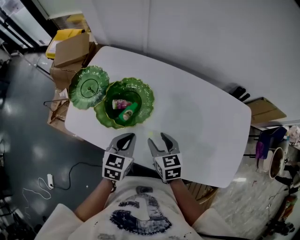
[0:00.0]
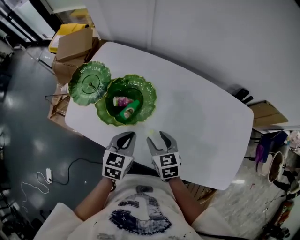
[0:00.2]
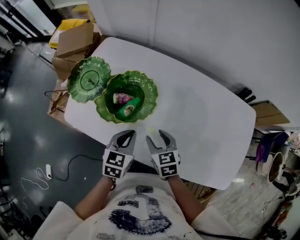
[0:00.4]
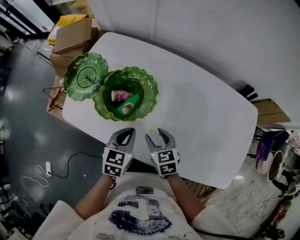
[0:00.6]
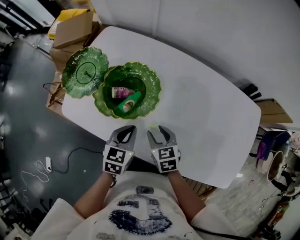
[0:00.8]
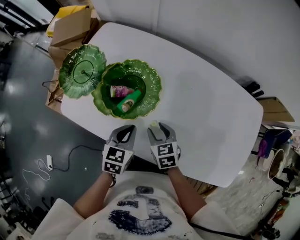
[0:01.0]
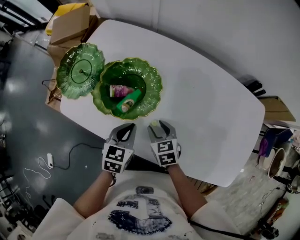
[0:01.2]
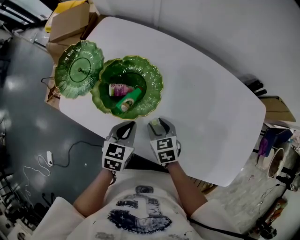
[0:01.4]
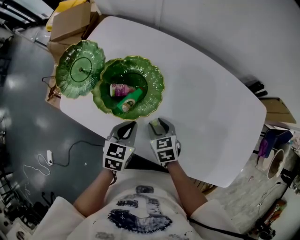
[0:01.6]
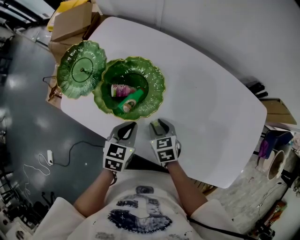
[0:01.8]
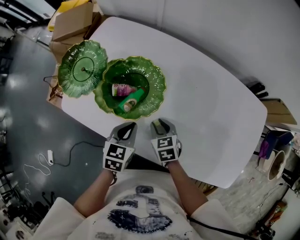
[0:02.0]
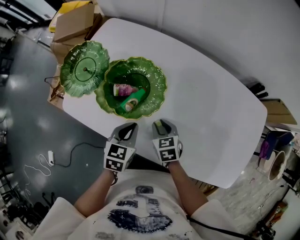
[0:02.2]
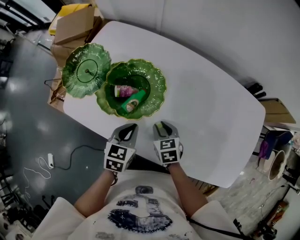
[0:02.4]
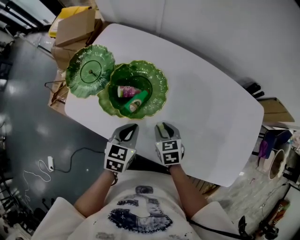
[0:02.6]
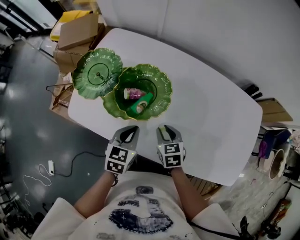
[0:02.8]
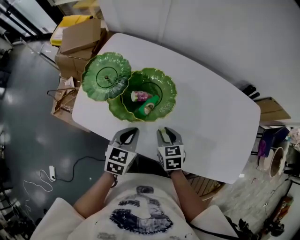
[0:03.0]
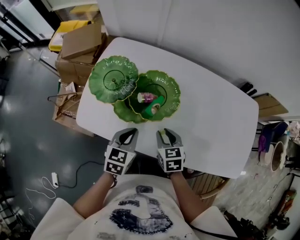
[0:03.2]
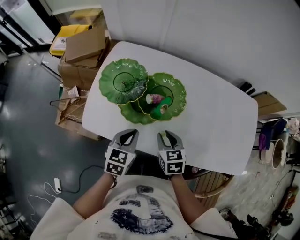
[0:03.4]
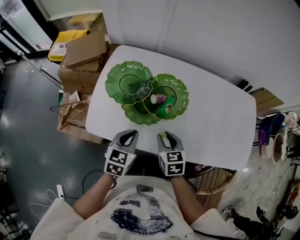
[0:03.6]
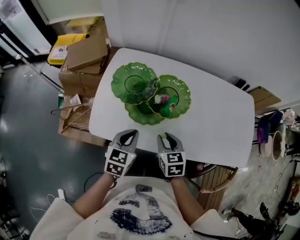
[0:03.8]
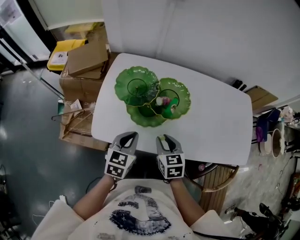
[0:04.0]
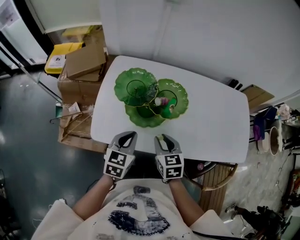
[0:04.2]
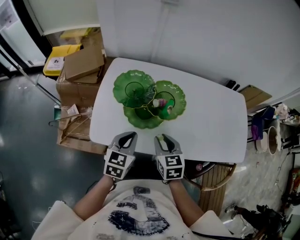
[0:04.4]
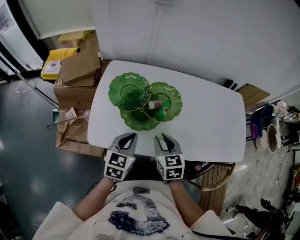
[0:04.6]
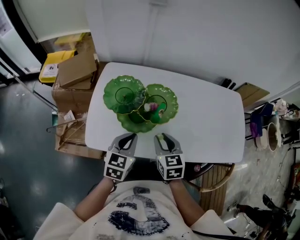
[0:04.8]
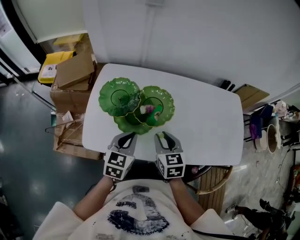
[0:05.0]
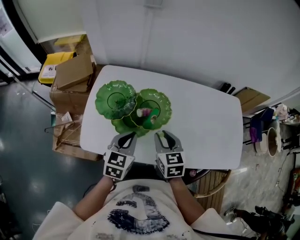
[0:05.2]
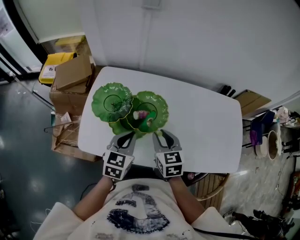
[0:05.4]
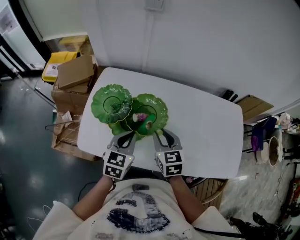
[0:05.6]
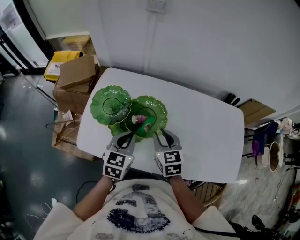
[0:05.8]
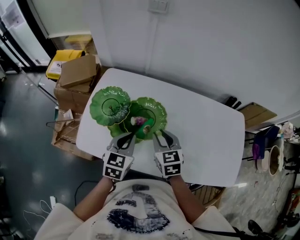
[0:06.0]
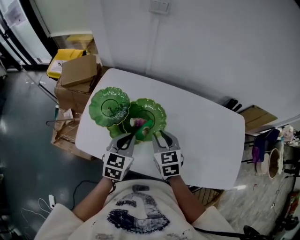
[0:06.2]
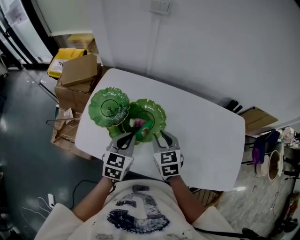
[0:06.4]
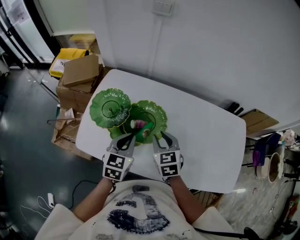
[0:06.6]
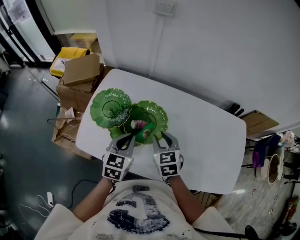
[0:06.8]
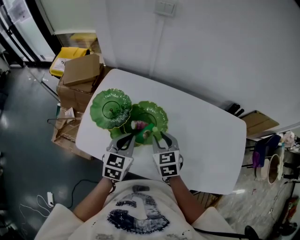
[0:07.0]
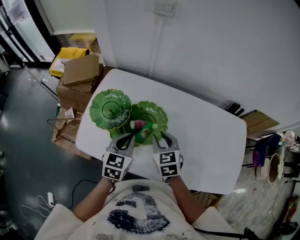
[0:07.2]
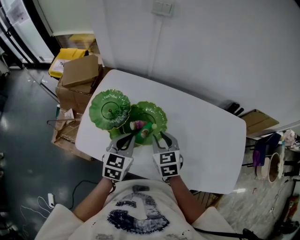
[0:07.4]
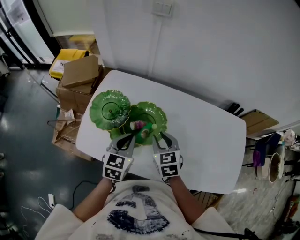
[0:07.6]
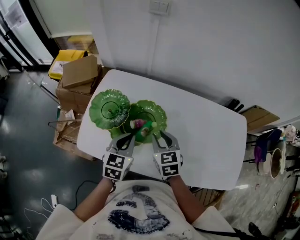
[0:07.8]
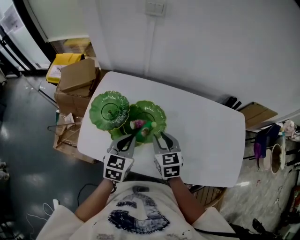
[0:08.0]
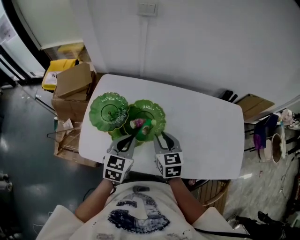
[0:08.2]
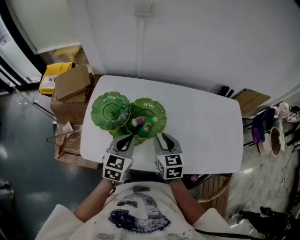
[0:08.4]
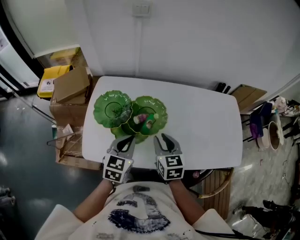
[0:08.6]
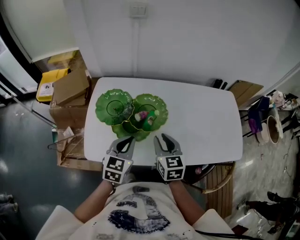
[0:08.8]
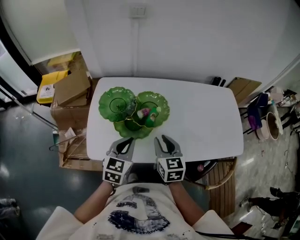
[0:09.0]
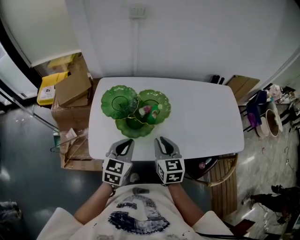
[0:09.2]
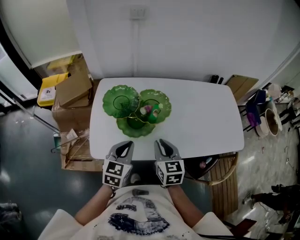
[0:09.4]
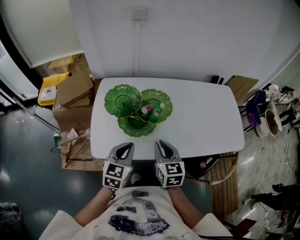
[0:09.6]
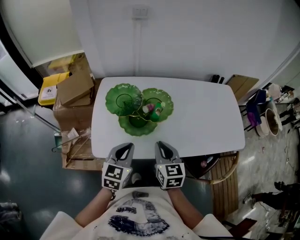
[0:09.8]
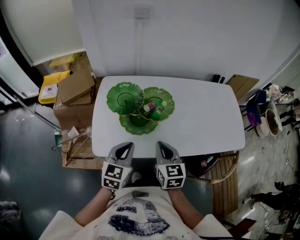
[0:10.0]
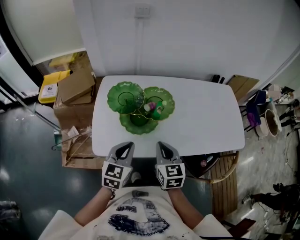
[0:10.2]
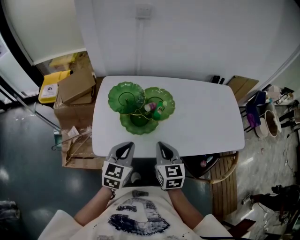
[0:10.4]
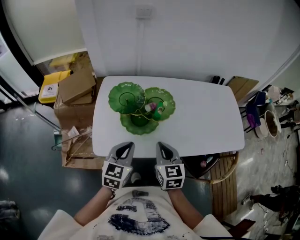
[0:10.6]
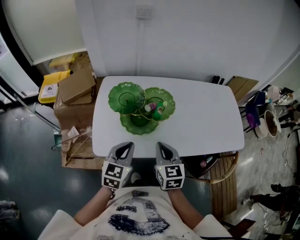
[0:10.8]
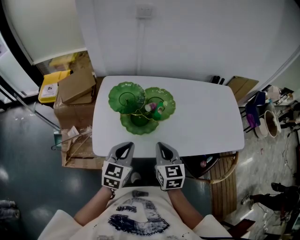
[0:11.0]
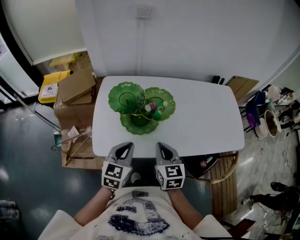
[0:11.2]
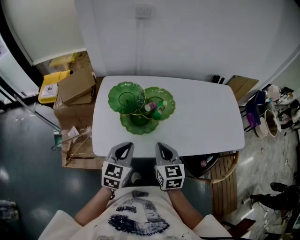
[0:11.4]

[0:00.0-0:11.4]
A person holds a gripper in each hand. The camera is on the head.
0:00.0 to 0:01.4: Both grippers travel together downward, roughly 10 cm.
0:01.4 to 0:02.8: The grippers make only small movements.
0:02.8 to 0:04.2: The left gripper travels to the left and upward by some 20 cm. The right gripper goes approximately 20 cm to the left, upward and backward, and rotates some 20 degrees.
0:04.2 to 0:05.6: The right gripper goes about 15 cm forward and to the right; the left gripper moves to the right and forward, about 10 cm.
0:05.6 to 0:07.2: The grippers move only a little.
0:07.2 to 0:08.6: The right gripper travels backward by roughly 5 cm, and turns by approximately 20 degrees; the left gripper changes place by about 5 cm.
0:08.6 to 0:10.0: The left gripper goes approximately 10 cm backward and to the left, while the right gripper heads backward, covering approximately 10 cm, and closes.
0:10.0 to 0:11.4: Both grippers stay put.

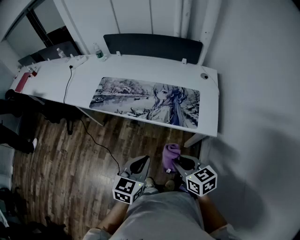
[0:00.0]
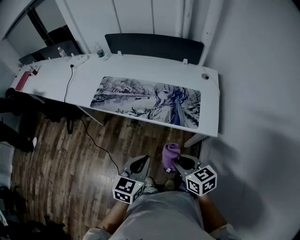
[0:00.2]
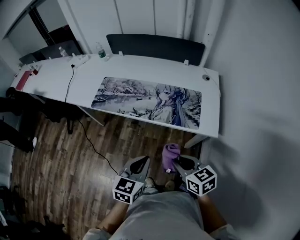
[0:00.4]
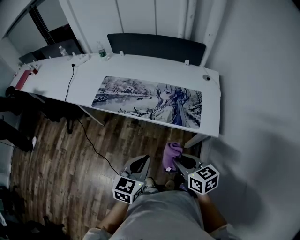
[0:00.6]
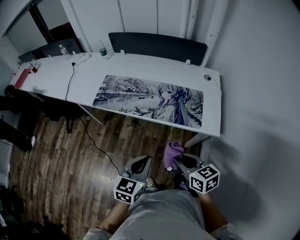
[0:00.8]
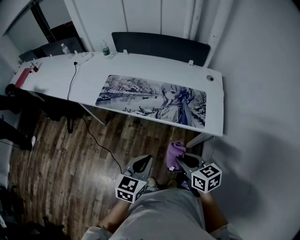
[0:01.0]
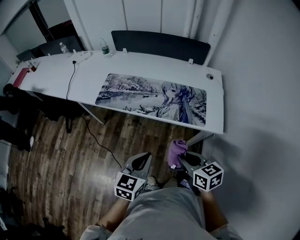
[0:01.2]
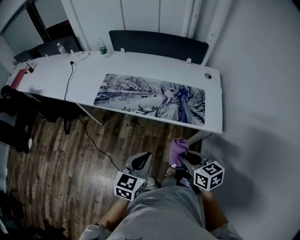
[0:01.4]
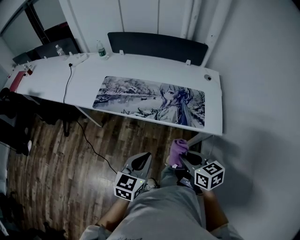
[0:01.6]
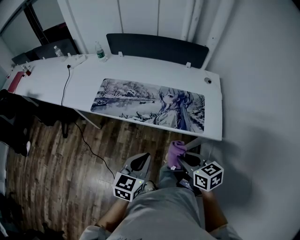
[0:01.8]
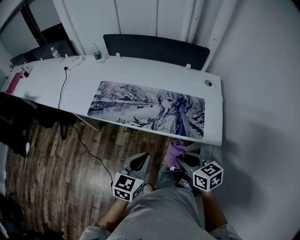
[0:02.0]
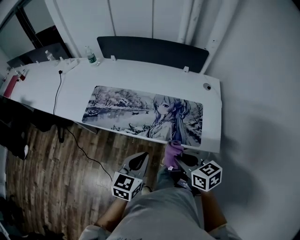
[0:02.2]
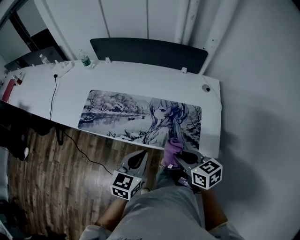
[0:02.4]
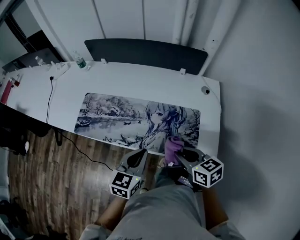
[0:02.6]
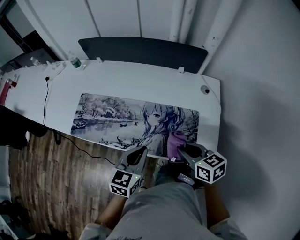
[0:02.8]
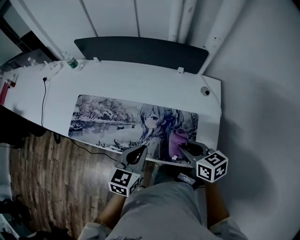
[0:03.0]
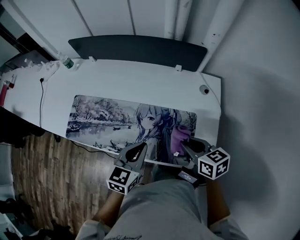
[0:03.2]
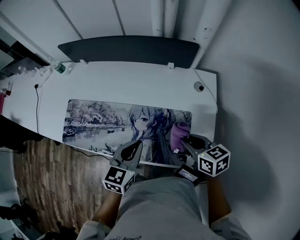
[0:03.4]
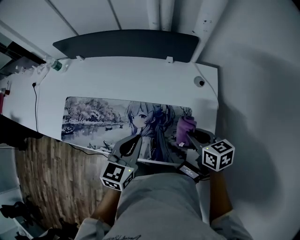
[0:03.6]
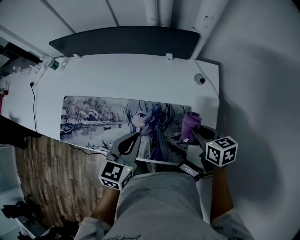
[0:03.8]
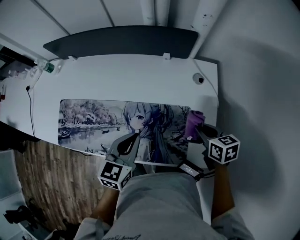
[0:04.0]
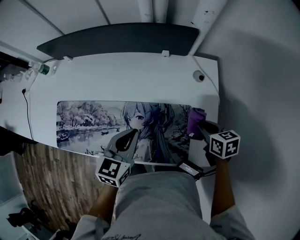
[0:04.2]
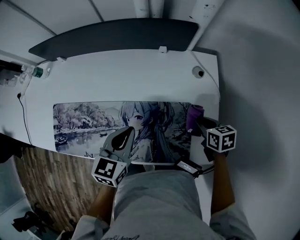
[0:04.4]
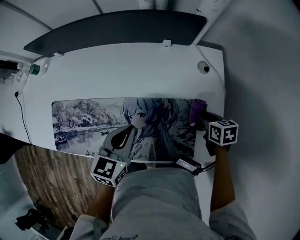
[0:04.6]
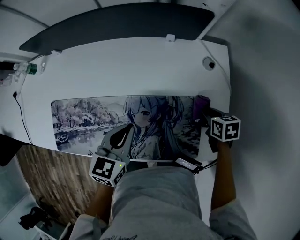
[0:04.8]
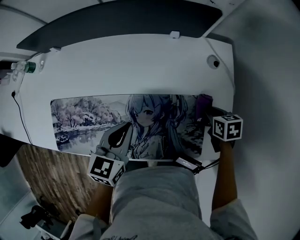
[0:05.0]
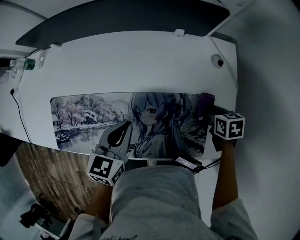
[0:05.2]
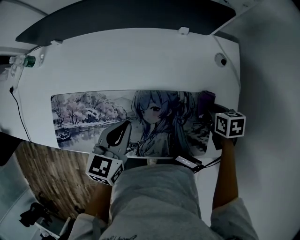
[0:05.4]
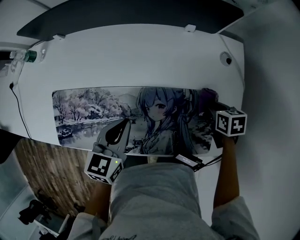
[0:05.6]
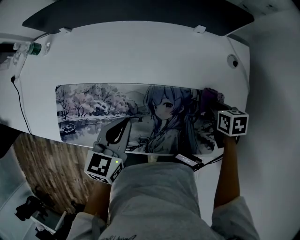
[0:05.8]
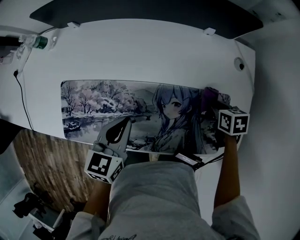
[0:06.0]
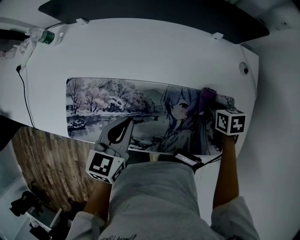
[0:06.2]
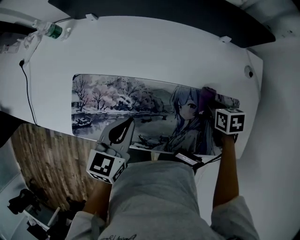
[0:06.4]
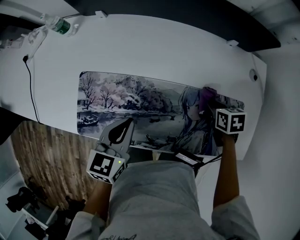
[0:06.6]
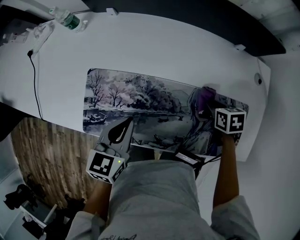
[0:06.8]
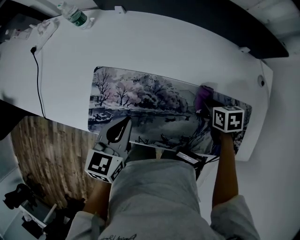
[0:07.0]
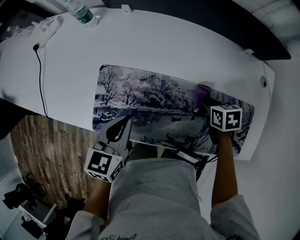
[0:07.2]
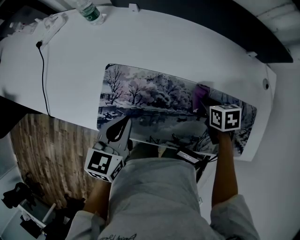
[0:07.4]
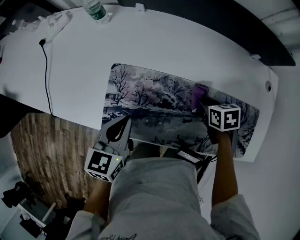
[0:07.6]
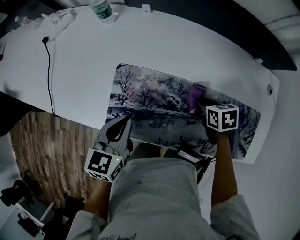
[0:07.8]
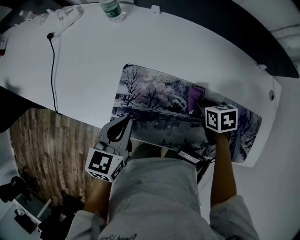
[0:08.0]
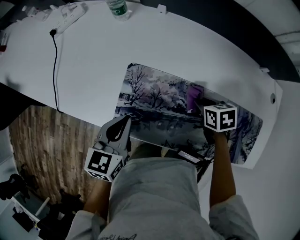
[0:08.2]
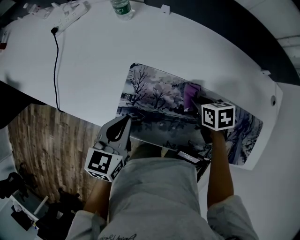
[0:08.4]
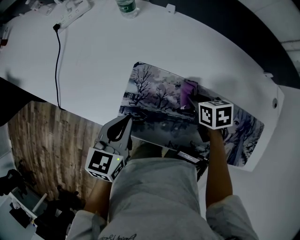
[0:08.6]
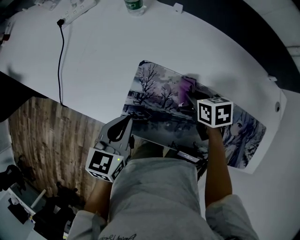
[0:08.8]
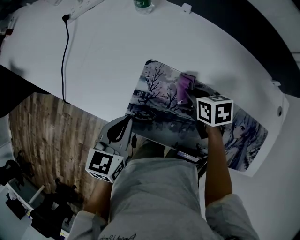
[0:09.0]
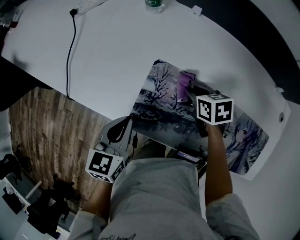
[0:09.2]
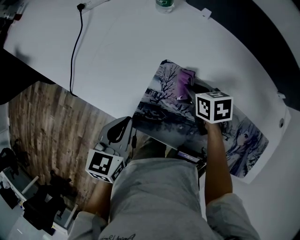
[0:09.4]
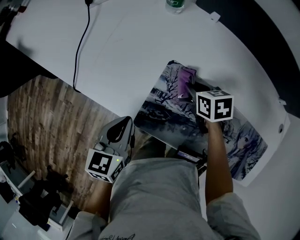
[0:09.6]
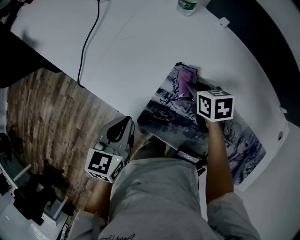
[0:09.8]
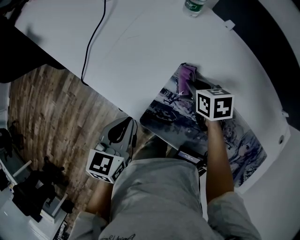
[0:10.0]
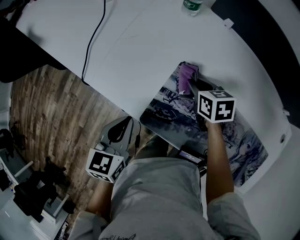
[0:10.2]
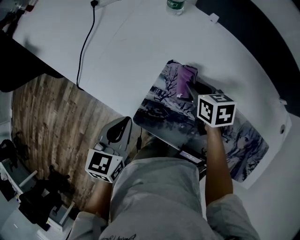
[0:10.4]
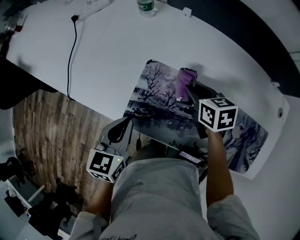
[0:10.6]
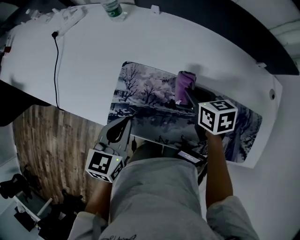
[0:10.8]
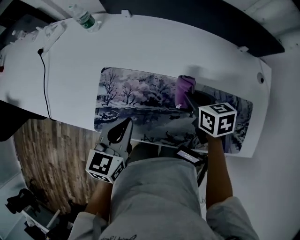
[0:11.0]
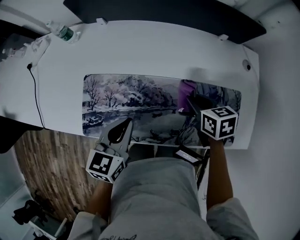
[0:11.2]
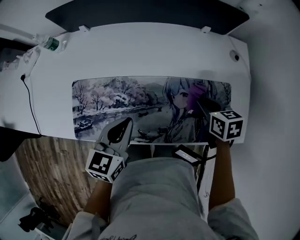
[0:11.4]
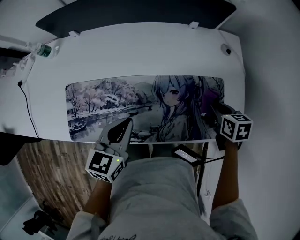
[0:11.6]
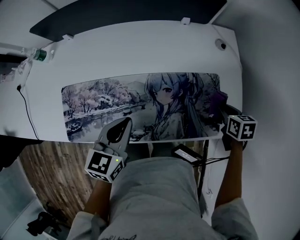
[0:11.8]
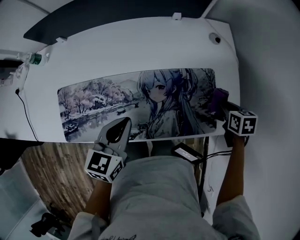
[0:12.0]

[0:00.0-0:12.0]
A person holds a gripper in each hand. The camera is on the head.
0:00.0 to 0:01.6: The left gripper goes roughly 5 cm to the left.
0:01.6 to 0:03.0: Both grippers move forward and to the right, roughly 30 cm.
0:03.0 to 0:04.4: The right gripper heads to the right, downward and forward, covering some 20 cm, and swivels roughly 30 degrees. The left gripper shifts about 15 cm forward.
0:04.4 to 0:06.0: The two grippers go some 15 cm to the left.
0:06.0 to 0:07.6: Both grippers move to the left, some 25 cm.
0:07.6 to 0:09.0: The left gripper shifts some 10 cm to the left. The right gripper is displaced to the left and forward by about 20 cm.
0:09.0 to 0:10.4: Both grippers travel together to the left, roughly 5 cm.
0:10.4 to 0:12.0: The two grippers travel together, roughly 60 cm. The right gripper rotates about 40 degrees. Meanwhile the left gripper rotates roughly 40 degrees.
